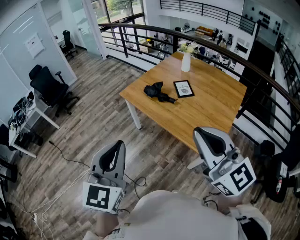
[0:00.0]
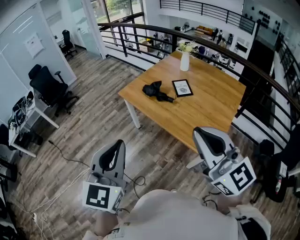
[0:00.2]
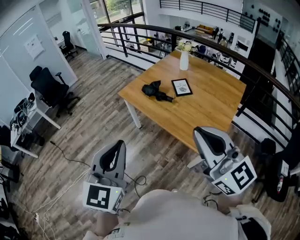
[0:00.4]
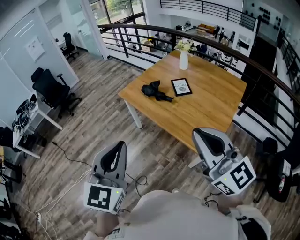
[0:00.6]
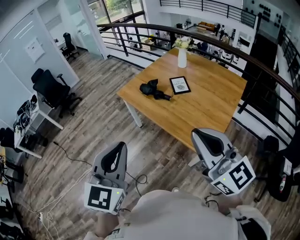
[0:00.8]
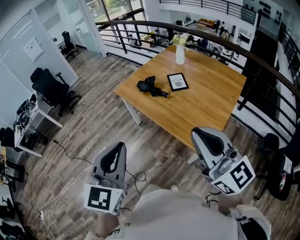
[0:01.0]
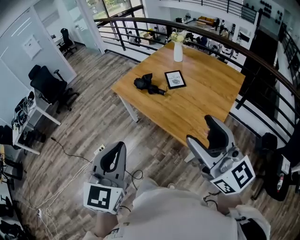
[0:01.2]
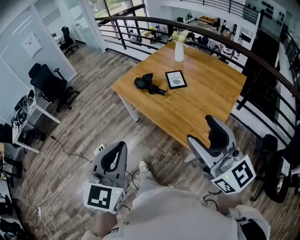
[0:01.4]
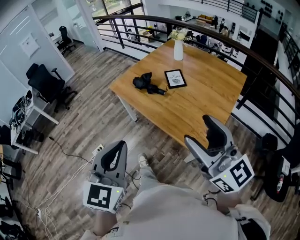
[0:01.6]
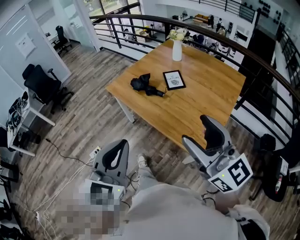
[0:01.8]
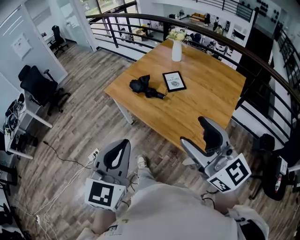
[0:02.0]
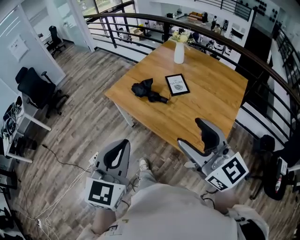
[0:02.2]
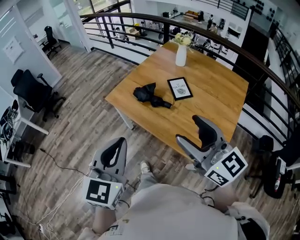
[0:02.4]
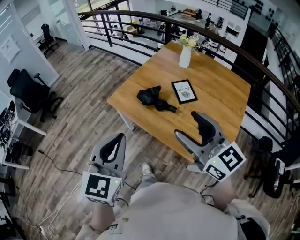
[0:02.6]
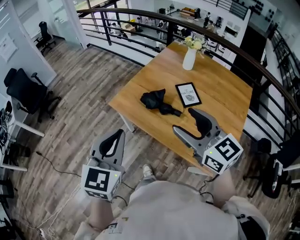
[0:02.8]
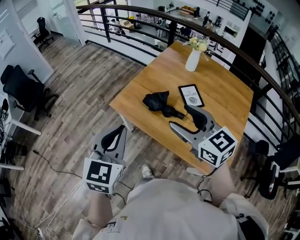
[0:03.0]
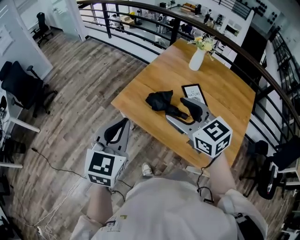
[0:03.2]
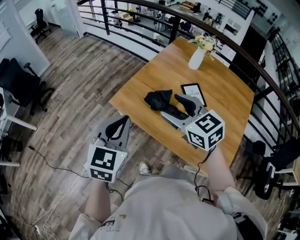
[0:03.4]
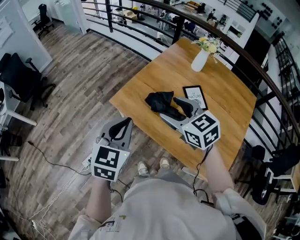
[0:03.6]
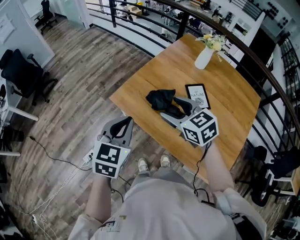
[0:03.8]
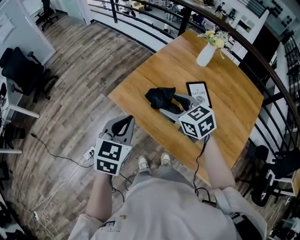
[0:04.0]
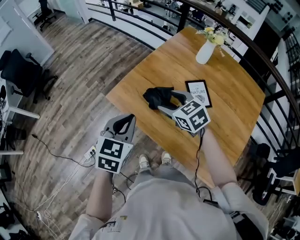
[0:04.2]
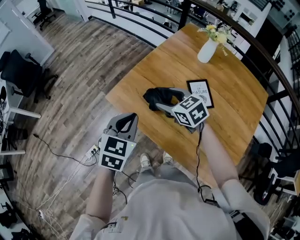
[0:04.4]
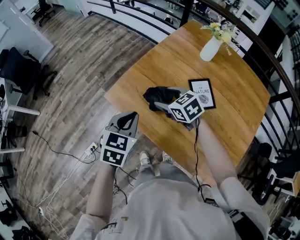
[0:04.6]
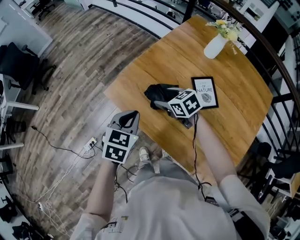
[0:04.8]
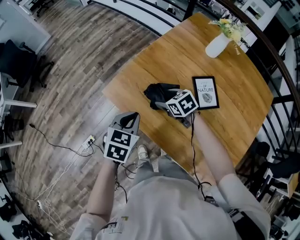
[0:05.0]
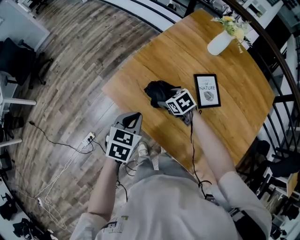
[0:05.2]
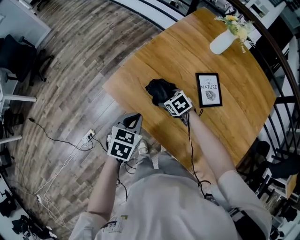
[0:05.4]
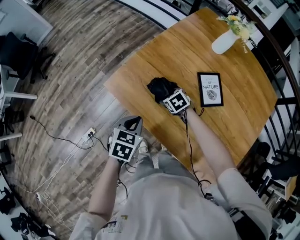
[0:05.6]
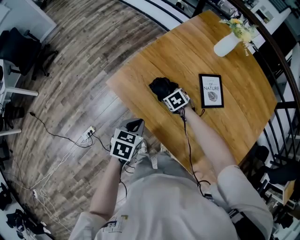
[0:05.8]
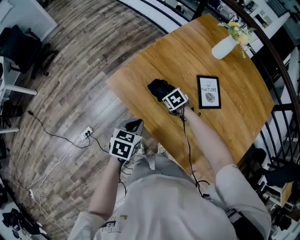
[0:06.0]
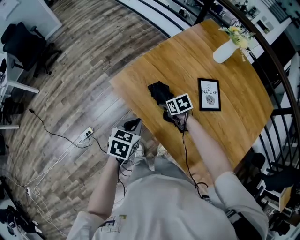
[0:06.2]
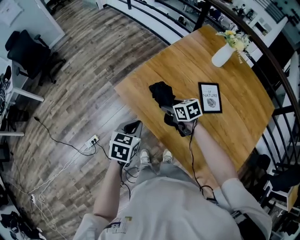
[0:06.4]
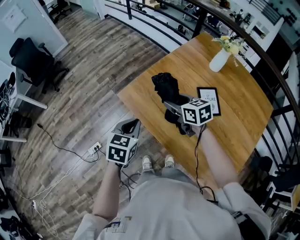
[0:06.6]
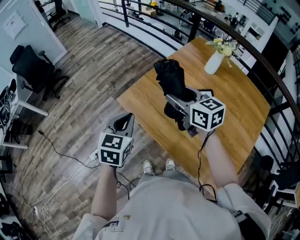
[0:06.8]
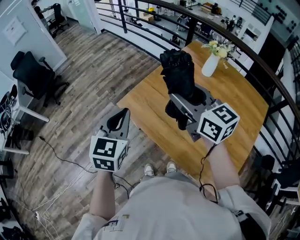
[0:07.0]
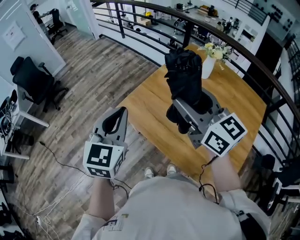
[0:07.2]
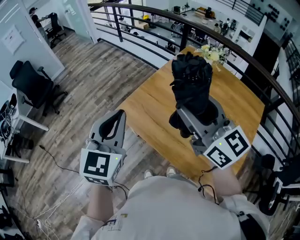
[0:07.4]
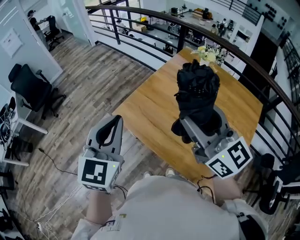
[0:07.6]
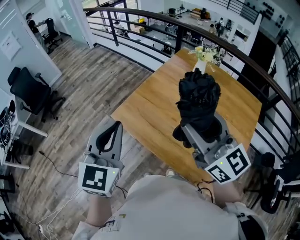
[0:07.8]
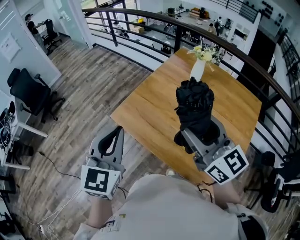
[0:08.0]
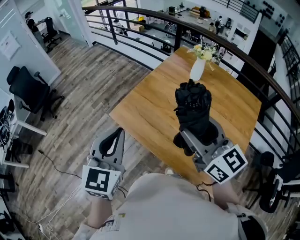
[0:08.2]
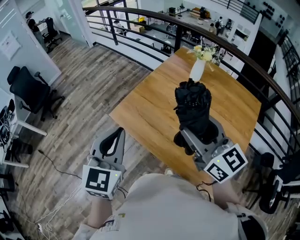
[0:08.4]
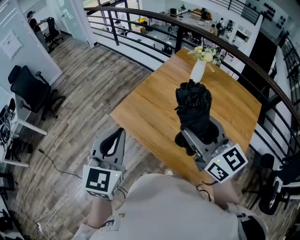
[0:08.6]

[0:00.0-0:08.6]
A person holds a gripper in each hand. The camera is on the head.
0:00.0 to 0:01.4: Both grippers move to the right, roughly 15 cm. The right gripper opens up.
0:01.4 to 0:02.8: Both grippers move forward and to the left, roughly 40 cm. The right gripper rotates about 20 degrees.
0:02.8 to 0:04.4: Both grippers move forward and downward, some 30 cm. The right gripper points its fingers about 30 degrees further downward. Meanwhile the left gripper swivels roughly 20 degrees.
0:04.4 to 0:05.8: The two grippers go roughly 20 cm downward. The right gripper turns by approximately 30 degrees, while the left gripper rotates approximately 30 degrees.
0:05.8 to 0:07.2: The left gripper goes roughly 35 cm upward, and tips its fingers upward by about 40 degrees. The right gripper is displaced upward by some 50 cm, and tips its fingers upward by roughly 70 degrees.
0:07.2 to 0:08.6: The left gripper moves backward, approximately 5 cm; the right gripper heads backward and to the right, covering approximately 10 cm.

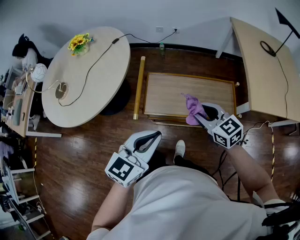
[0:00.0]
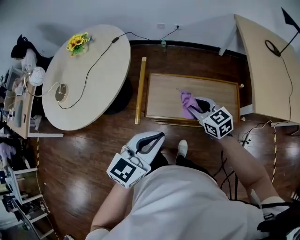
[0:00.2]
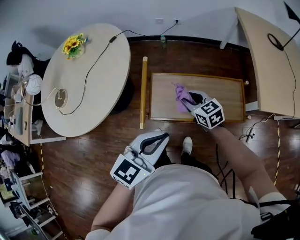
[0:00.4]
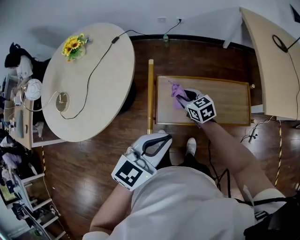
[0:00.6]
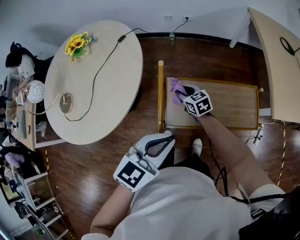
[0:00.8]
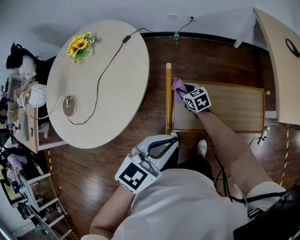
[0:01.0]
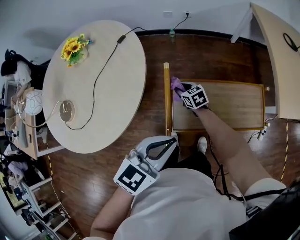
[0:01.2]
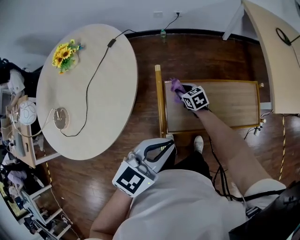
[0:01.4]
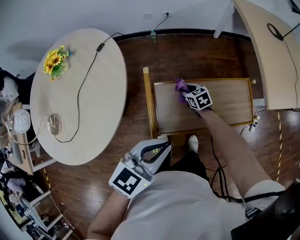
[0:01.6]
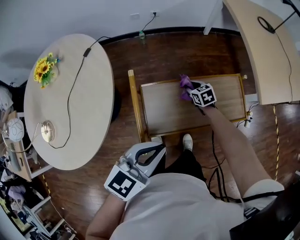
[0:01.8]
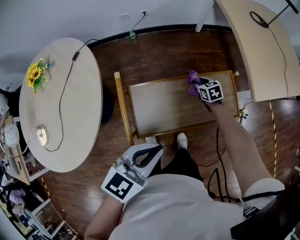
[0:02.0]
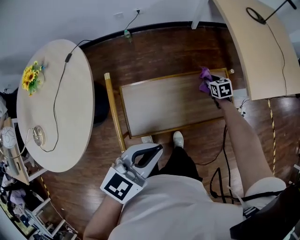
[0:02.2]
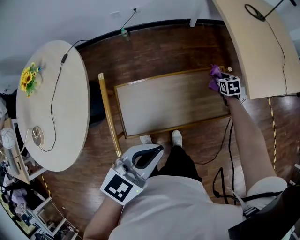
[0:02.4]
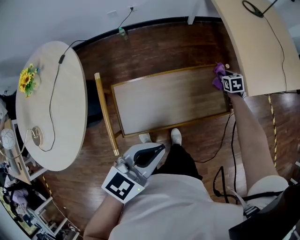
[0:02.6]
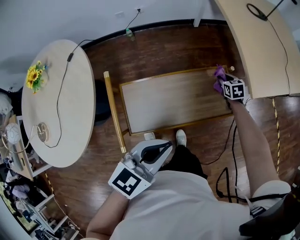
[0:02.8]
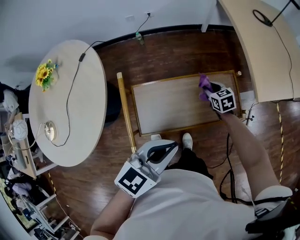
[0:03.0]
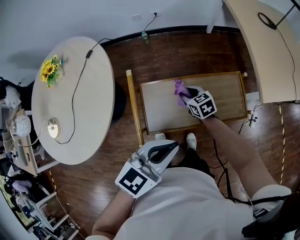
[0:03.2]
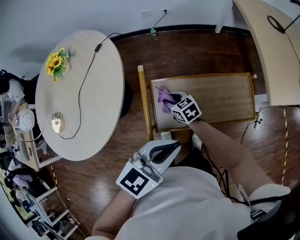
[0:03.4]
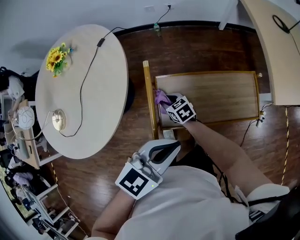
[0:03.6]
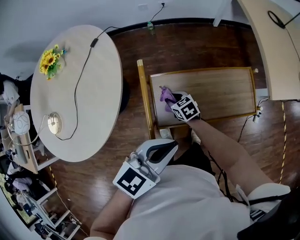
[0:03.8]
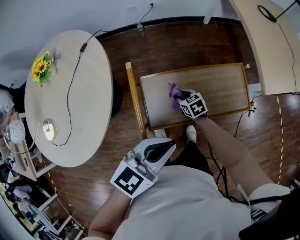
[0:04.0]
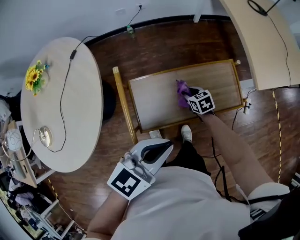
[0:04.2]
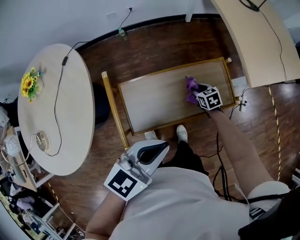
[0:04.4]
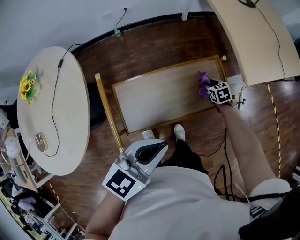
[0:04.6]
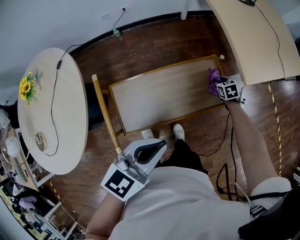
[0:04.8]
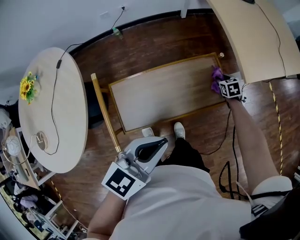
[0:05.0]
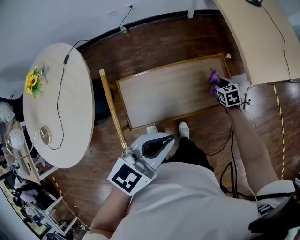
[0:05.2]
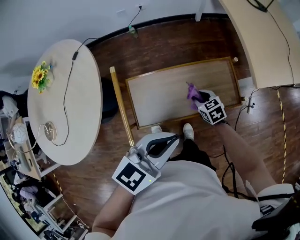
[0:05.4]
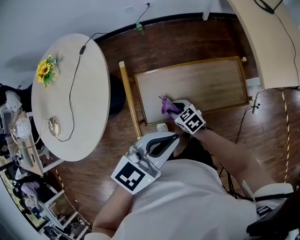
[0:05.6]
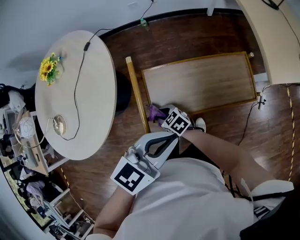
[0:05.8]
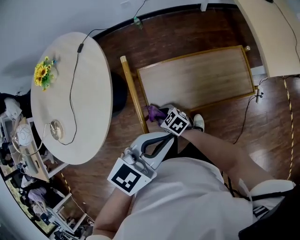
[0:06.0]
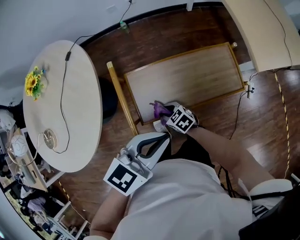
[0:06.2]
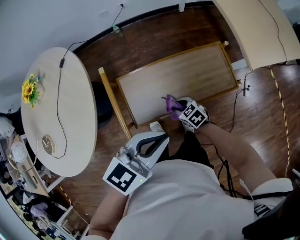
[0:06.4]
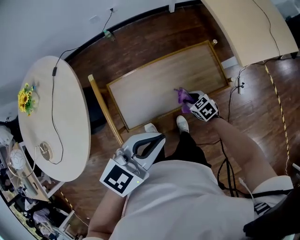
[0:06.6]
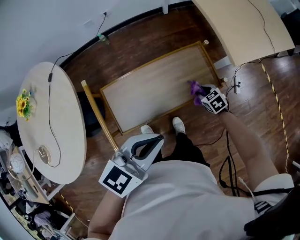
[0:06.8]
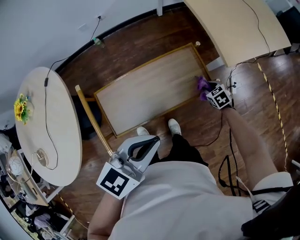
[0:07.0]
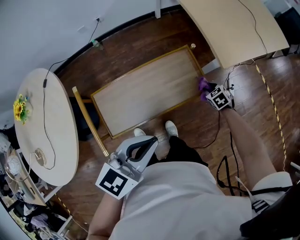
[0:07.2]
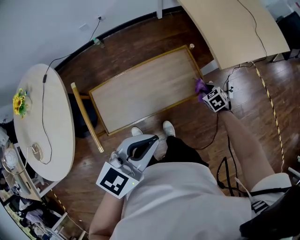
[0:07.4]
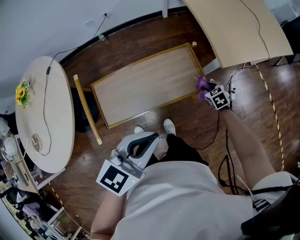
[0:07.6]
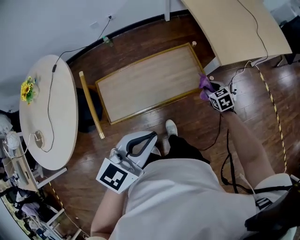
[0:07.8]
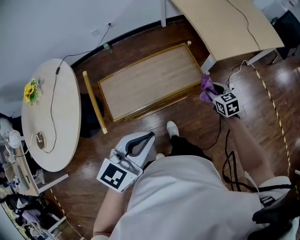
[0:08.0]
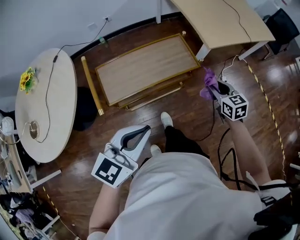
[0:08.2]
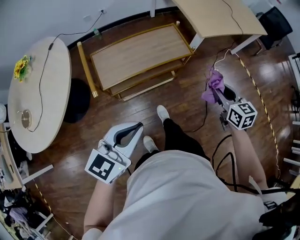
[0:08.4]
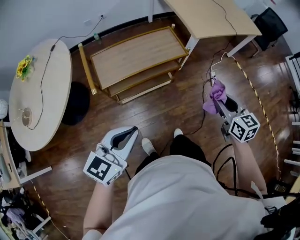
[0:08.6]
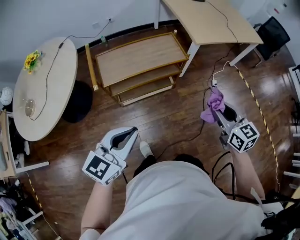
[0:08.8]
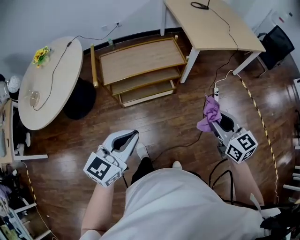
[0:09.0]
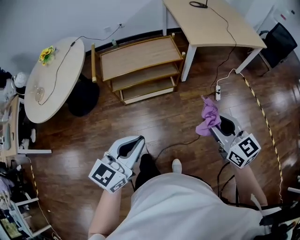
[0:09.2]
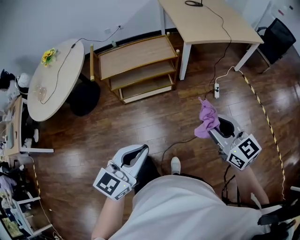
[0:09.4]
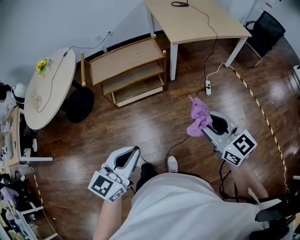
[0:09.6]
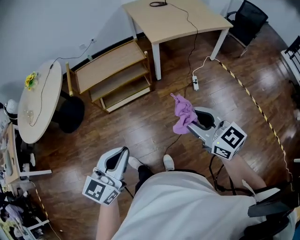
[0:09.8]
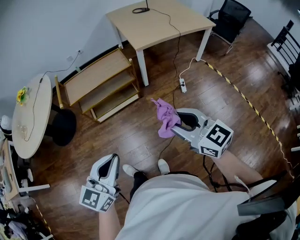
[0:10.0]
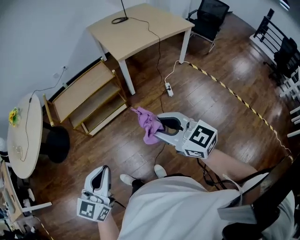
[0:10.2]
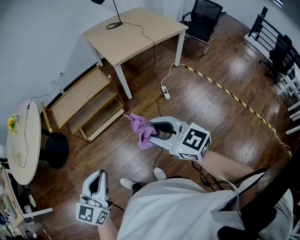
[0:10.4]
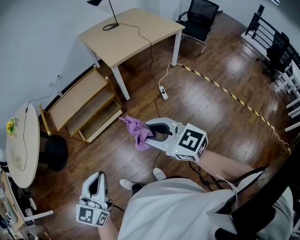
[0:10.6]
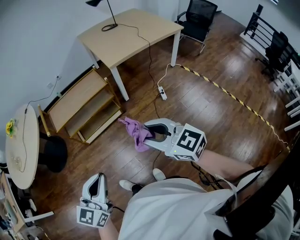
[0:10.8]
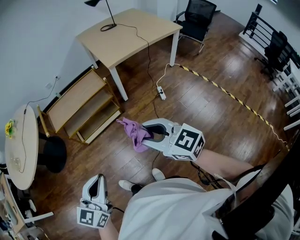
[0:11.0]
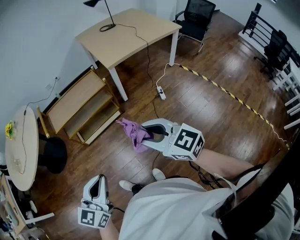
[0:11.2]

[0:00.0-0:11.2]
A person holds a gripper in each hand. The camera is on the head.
0:00.0 to 0:01.6: The right gripper heads downward and forward, covering some 35 cm, and rotates roughly 30 degrees. The left gripper shifts approximately 15 cm forward and to the left.
0:03.2 to 0:04.8: The right gripper moves roughly 35 cm, and turns by roughly 30 degrees, while the left gripper shifts by approximately 5 cm.
0:04.8 to 0:06.4: The right gripper changes its angle by approximately 30 degrees.
0:06.4 to 0:08.0: The right gripper moves to the right, about 35 cm, and rotates roughly 30 degrees, while the left gripper goes about 15 cm to the right and backward.
0:08.0 to 0:09.6: Both grippers are carried backward and to the right, approximately 40 cm. The right gripper is displaced upward by about 30 cm, and points its fingers some 30 degrees further upward.
0:09.6 to 0:11.2: There are only small adjustments of the grippers.

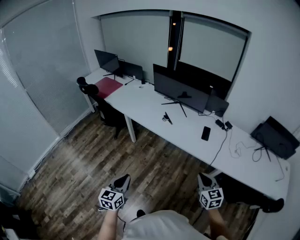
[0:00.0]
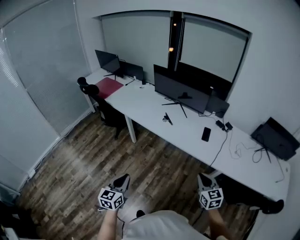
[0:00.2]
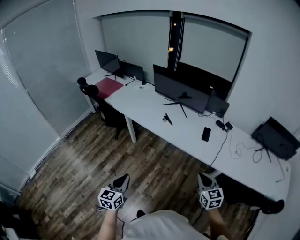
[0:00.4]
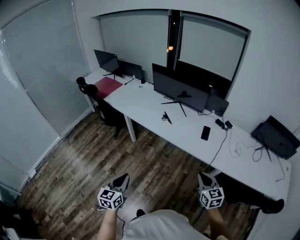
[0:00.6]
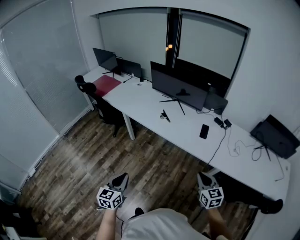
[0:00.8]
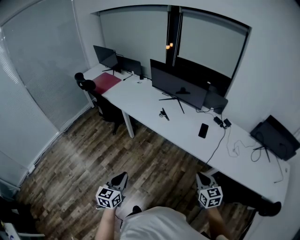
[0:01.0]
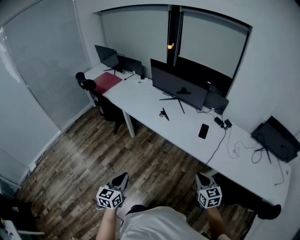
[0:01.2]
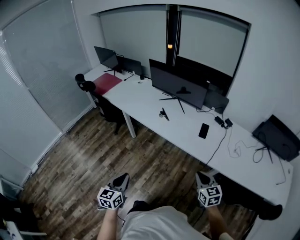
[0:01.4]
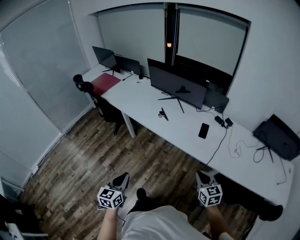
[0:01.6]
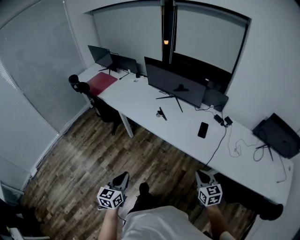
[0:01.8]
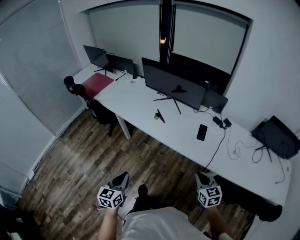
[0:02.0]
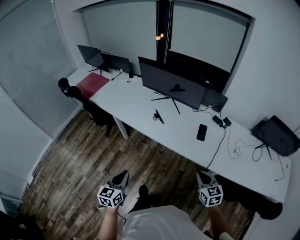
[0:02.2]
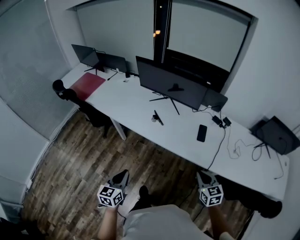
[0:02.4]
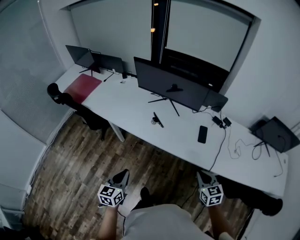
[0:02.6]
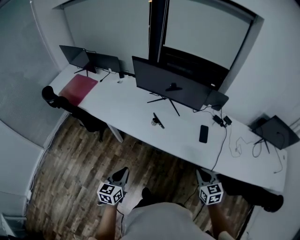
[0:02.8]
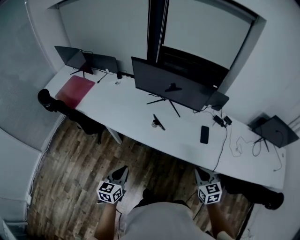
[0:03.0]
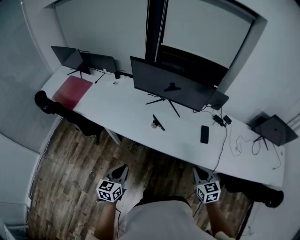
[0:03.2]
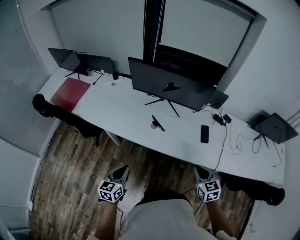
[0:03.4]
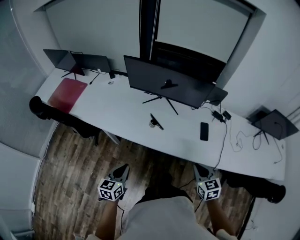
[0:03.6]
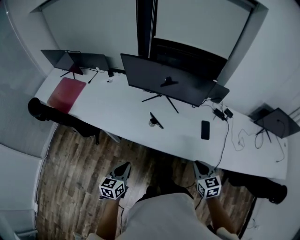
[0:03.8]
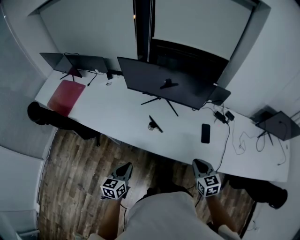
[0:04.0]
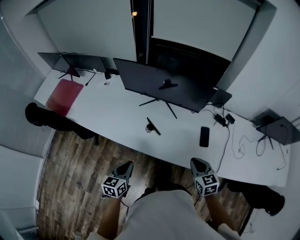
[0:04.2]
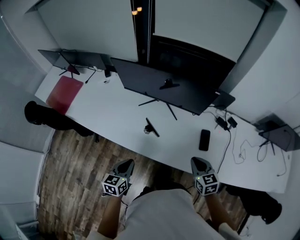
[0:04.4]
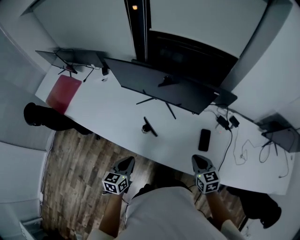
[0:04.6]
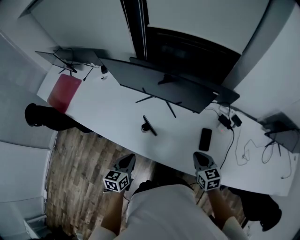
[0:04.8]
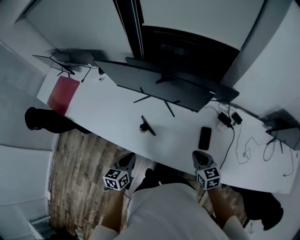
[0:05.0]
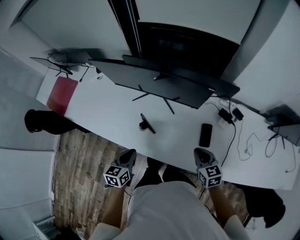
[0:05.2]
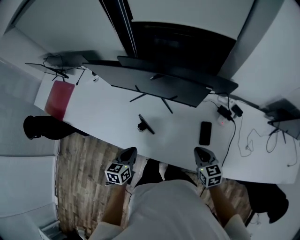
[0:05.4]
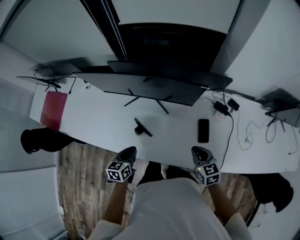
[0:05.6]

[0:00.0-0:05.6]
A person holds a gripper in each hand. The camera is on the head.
0:00.0 to 0:01.4: The grippers both shift to the right by roughly 5 cm.
0:01.4 to 0:02.8: The left gripper is displaced forward by roughly 25 cm, while the right gripper travels forward and to the left by roughly 20 cm.
0:02.8 to 0:04.2: Both grippers move forward, some 15 cm.
0:04.2 to 0:05.6: Both grippers move forward, to the right and downward, some 20 cm.
